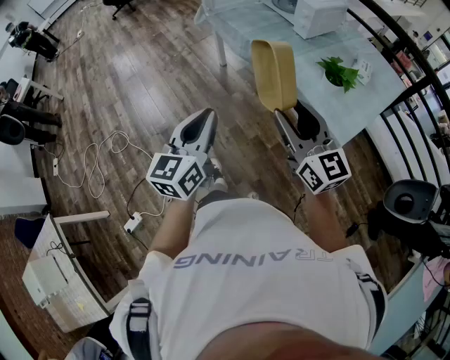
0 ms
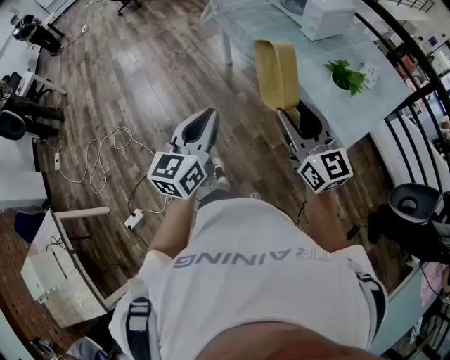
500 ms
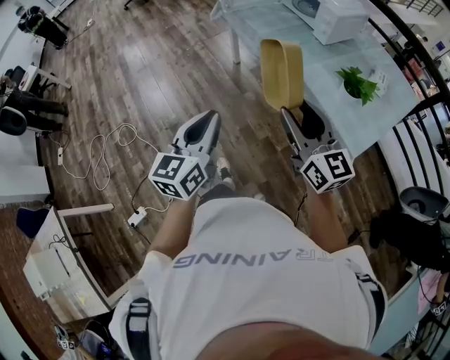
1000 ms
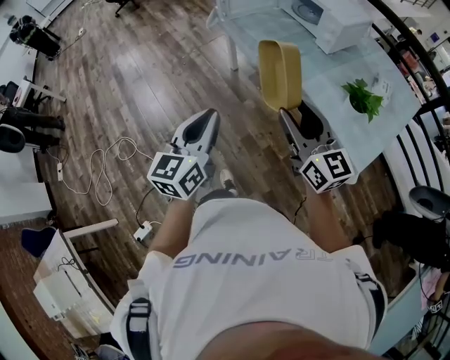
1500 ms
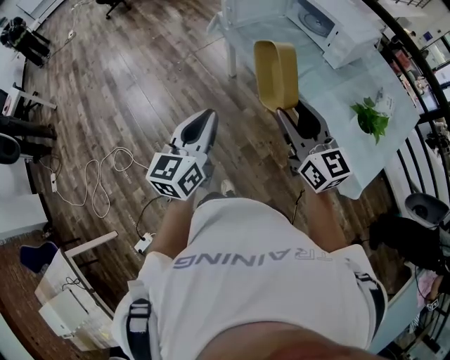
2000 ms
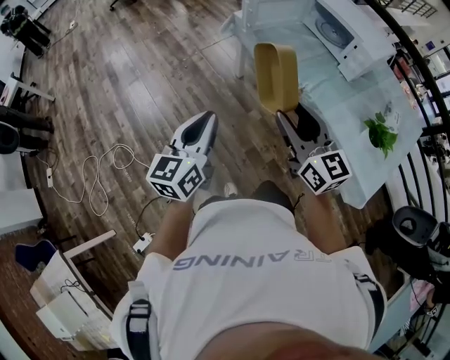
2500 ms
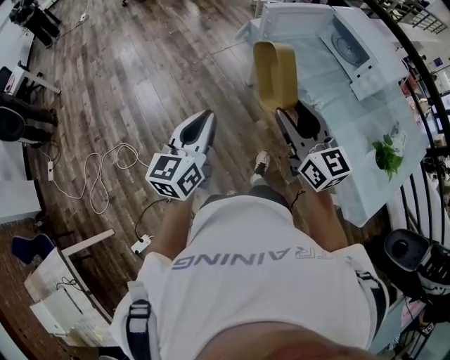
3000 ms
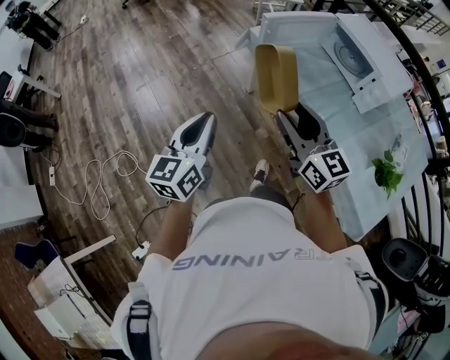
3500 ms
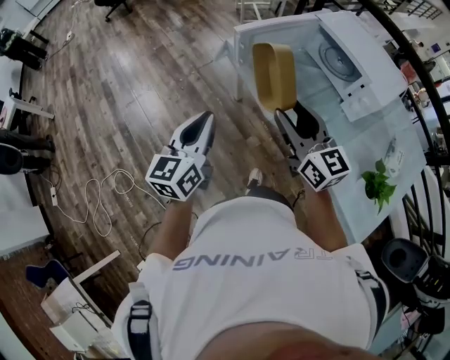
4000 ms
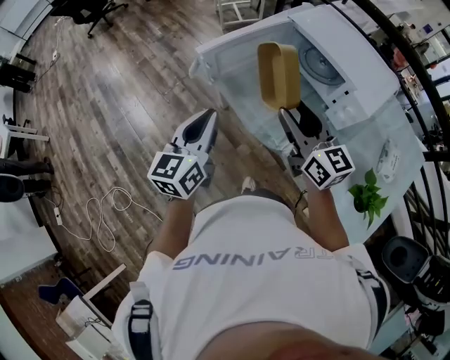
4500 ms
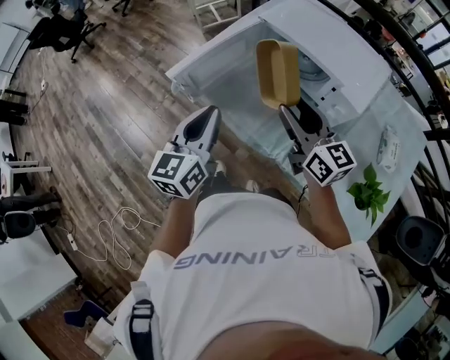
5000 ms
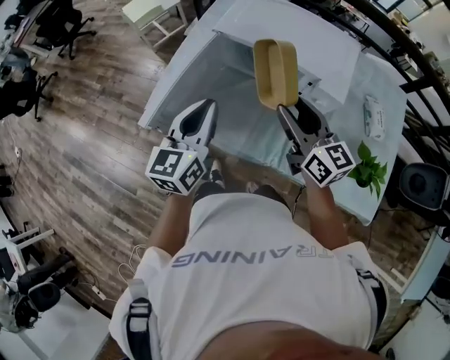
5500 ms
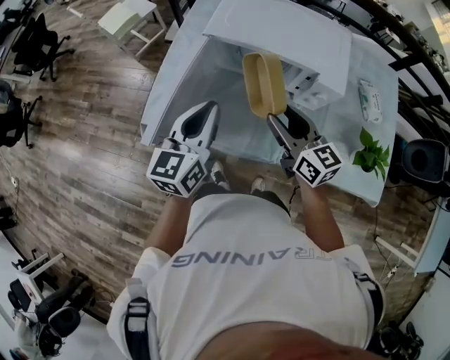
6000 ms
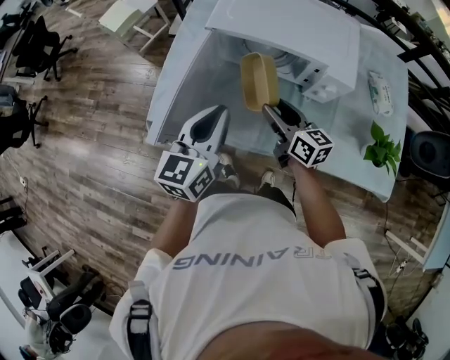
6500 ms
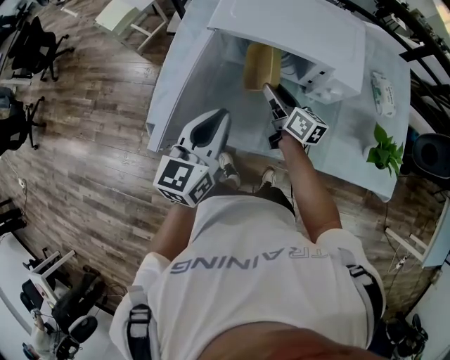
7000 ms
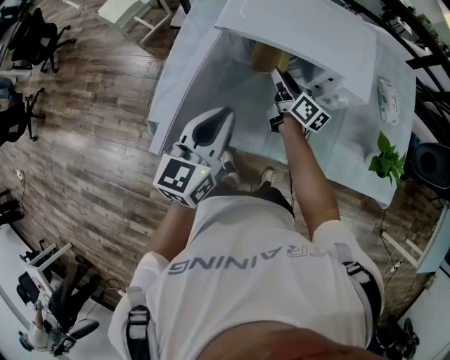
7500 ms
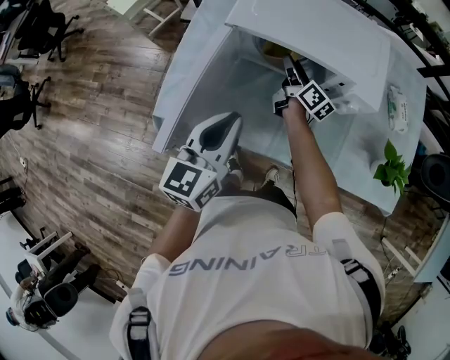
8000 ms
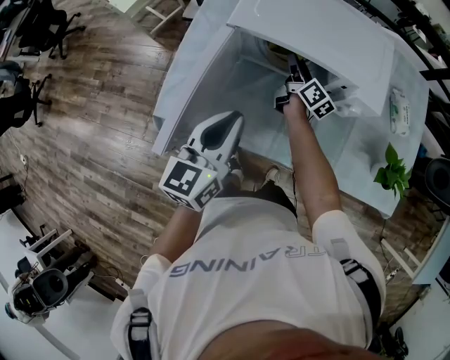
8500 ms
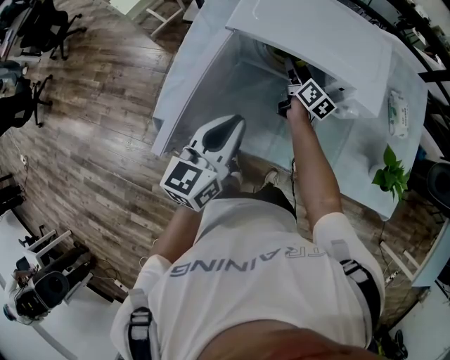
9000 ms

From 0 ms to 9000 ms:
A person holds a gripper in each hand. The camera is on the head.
From 0 ms to 2000 ms: The grippers both shift forward and to the left by some 25 cm.
From 2000 ms to 4500 ms: Both grippers travel together forward, some 40 cm.
From 4500 ms to 7000 ms: The right gripper ends up some 30 cm from where it was, and rotates about 50 degrees; the left gripper ends up some 25 cm from where it was, and turns by roughly 40 degrees.
From 7000 ms to 9000 ms: The right gripper moves forward and downward, roughly 15 cm.

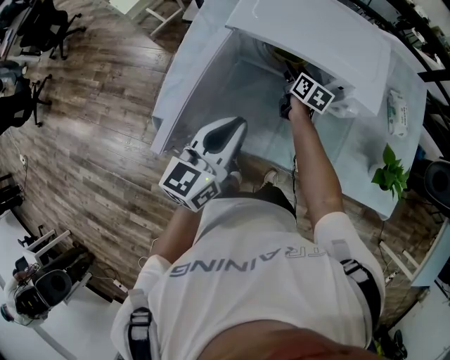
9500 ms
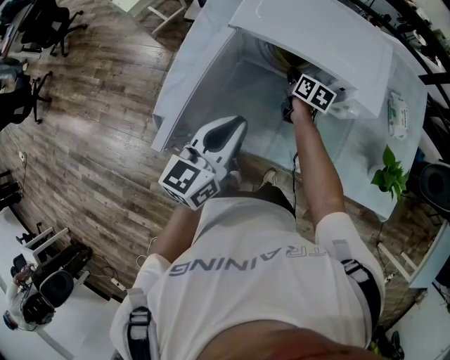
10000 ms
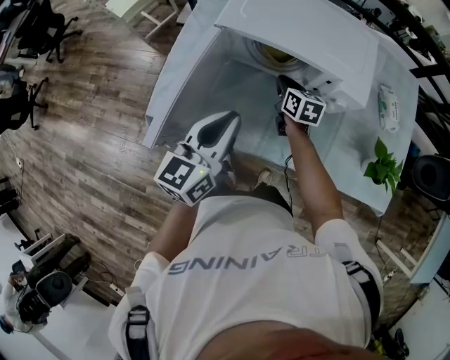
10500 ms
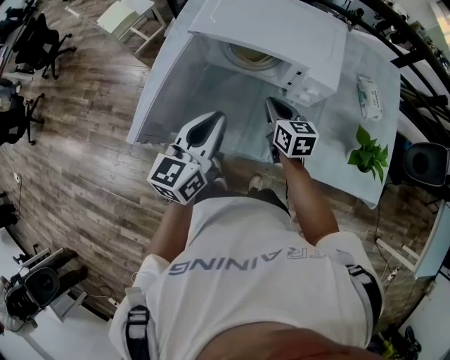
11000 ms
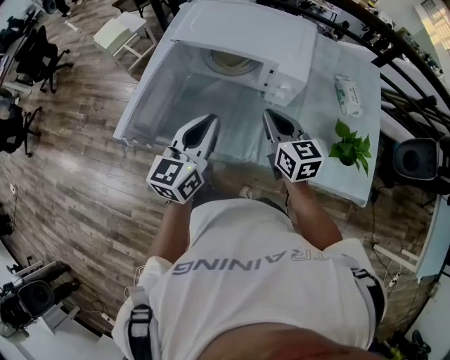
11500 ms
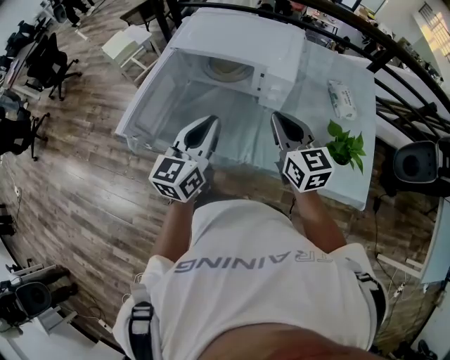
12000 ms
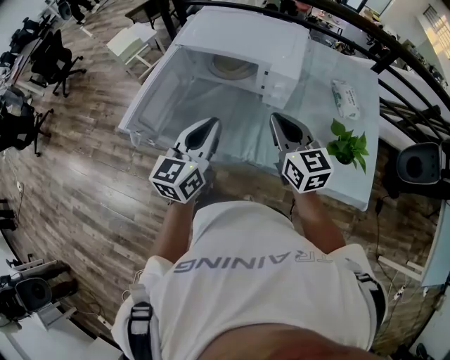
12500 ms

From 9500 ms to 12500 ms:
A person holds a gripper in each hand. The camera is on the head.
From 9500 ms to 11000 ms: The left gripper heads to the right, covering some 5 cm, while the right gripper heads backward and upward, covering approximately 20 cm, turns by some 20 degrees, and closes its fingers.
From 11000 ms to 12500 ms: The right gripper heads upward, backward and to the right, covering about 20 cm, and changes its angle by some 20 degrees; the left gripper heads backward and to the right, covering about 10 cm.

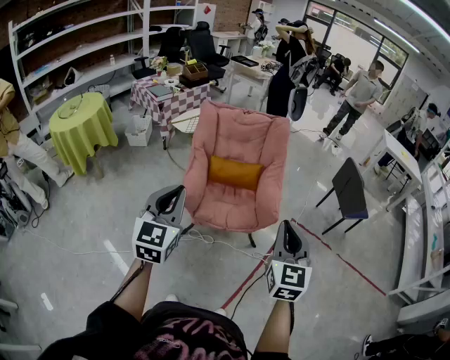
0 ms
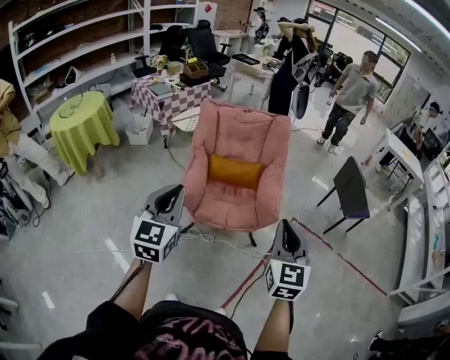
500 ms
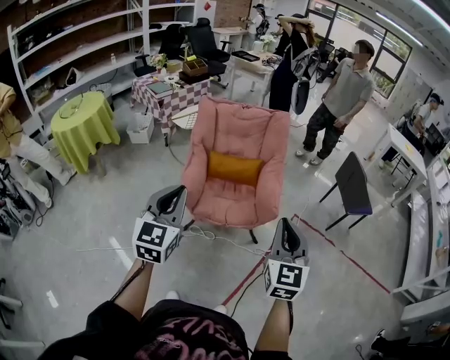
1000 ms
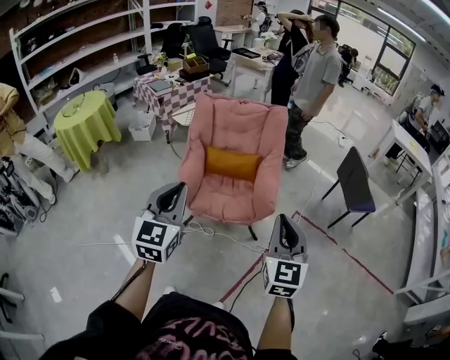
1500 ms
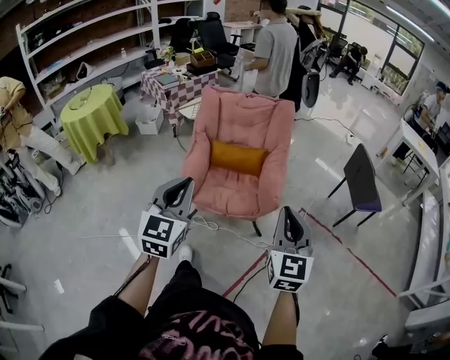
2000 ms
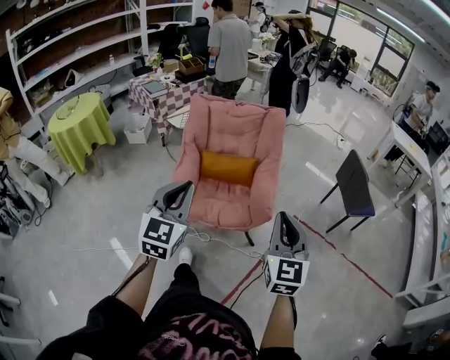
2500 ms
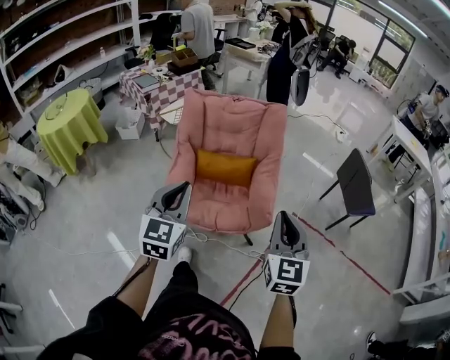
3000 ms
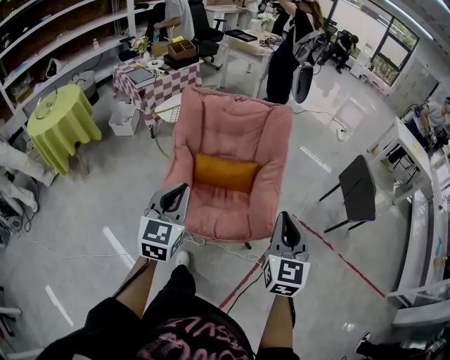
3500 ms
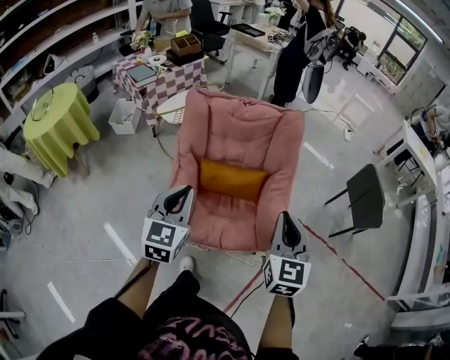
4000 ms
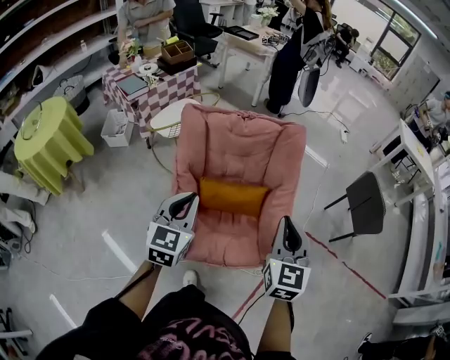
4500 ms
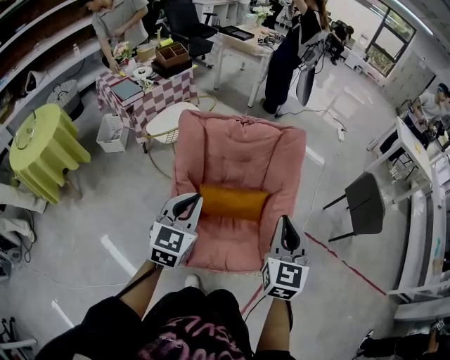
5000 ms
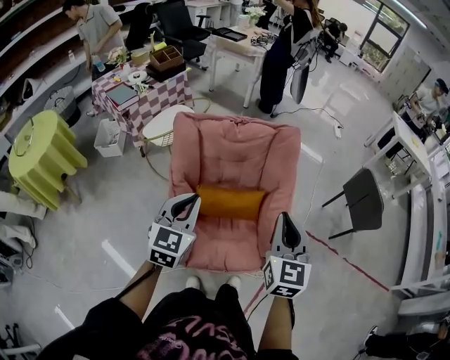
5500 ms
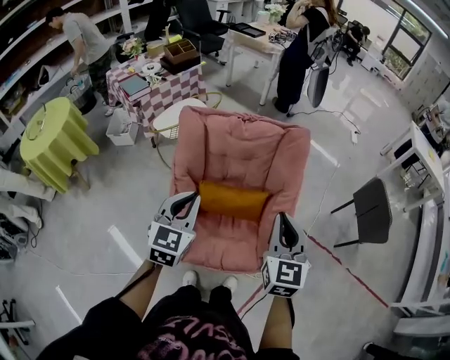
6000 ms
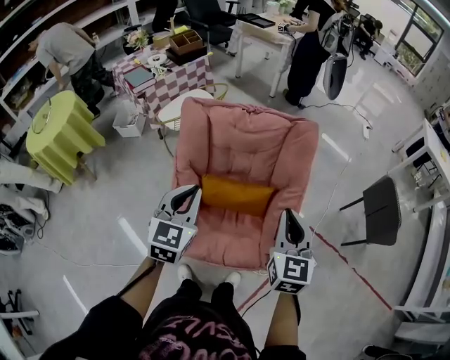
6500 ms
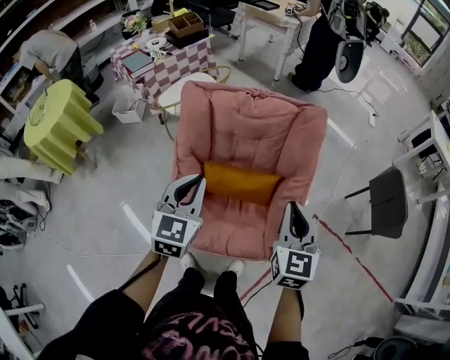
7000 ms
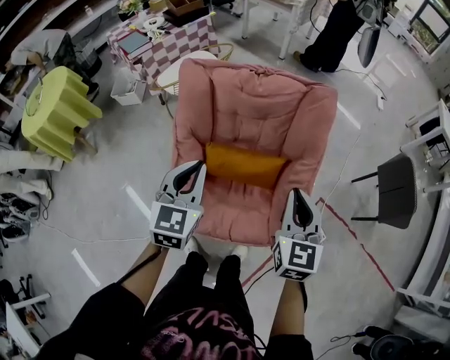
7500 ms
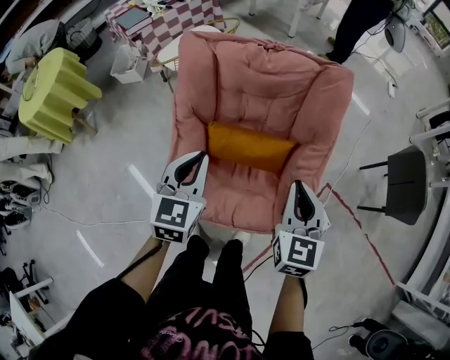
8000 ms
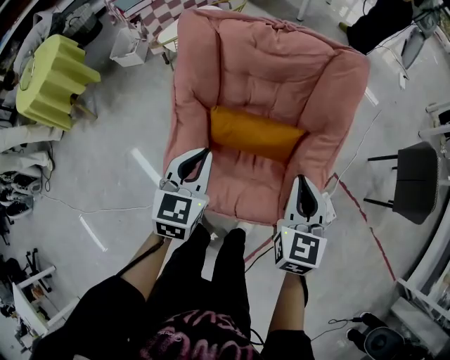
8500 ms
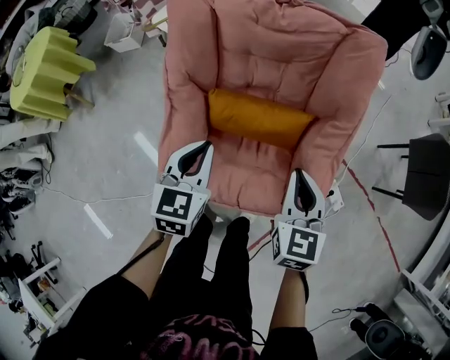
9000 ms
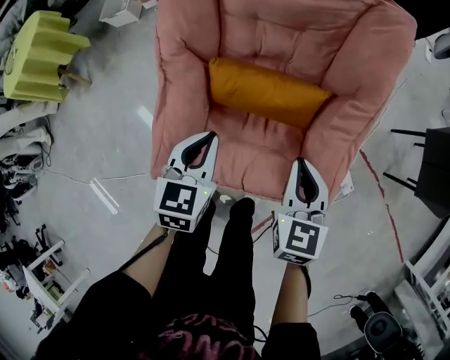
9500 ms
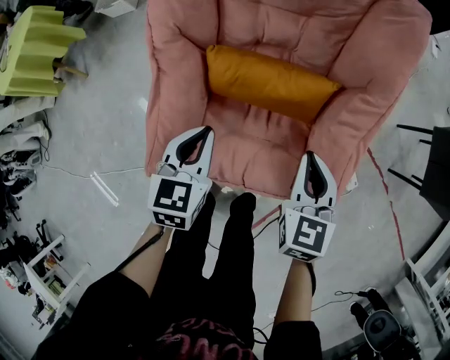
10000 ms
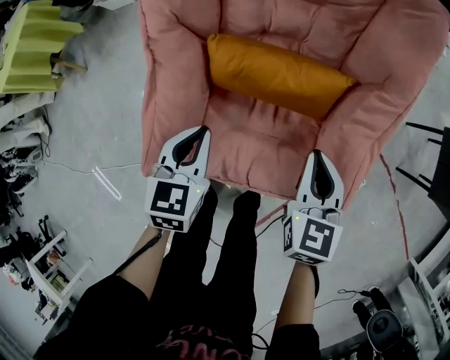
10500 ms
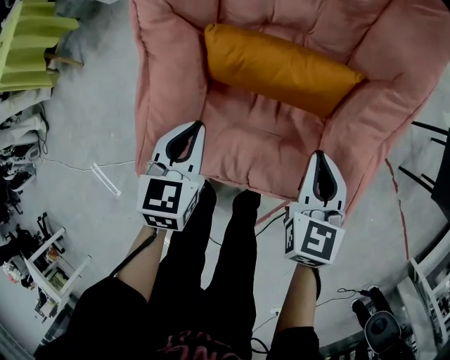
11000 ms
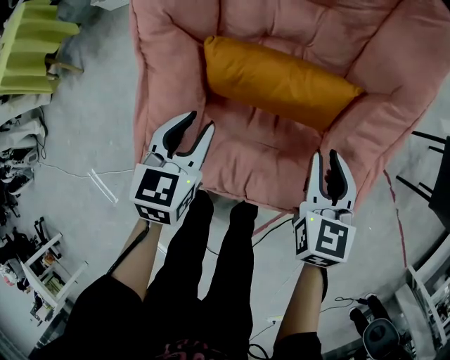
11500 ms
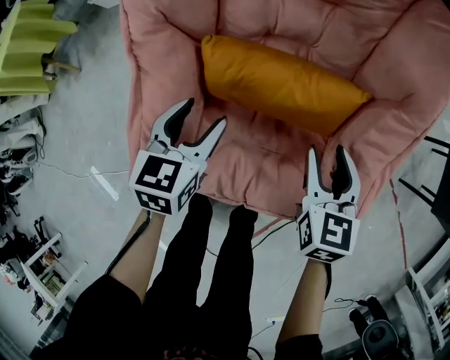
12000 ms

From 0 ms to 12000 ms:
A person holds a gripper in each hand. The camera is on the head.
From 0 ms to 2000 ms: The two grippers go about 10 cm to the right.
From 2000 ms to 4000 ms: Both grippers travel together forward, about 35 cm.
From 4000 ms to 6000 ms: Both grippers move forward, some 15 cm.
From 6000 ms to 8000 ms: Both grippers travel together downward, about 15 cm.
From 8000 ms to 10000 ms: Both grippers move downward, about 25 cm.
From 10000 ms to 12000 ms: Both grippers move downward and forward, some 10 cm. The left gripper opens up, while the right gripper opens up.

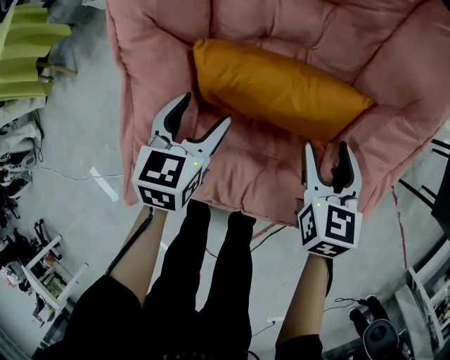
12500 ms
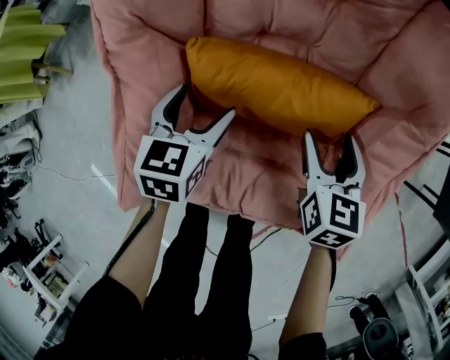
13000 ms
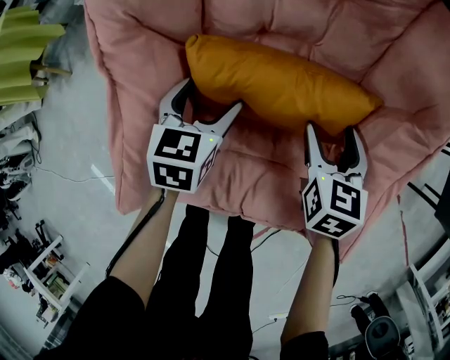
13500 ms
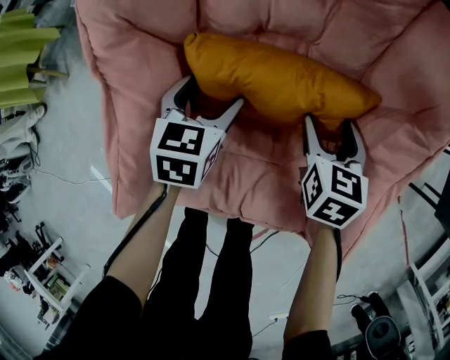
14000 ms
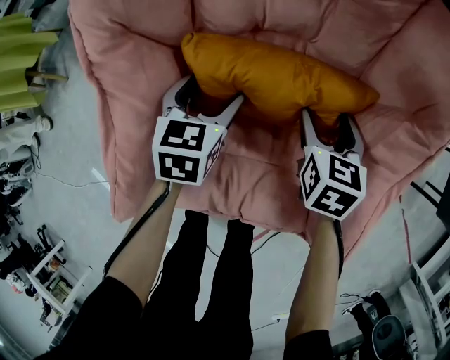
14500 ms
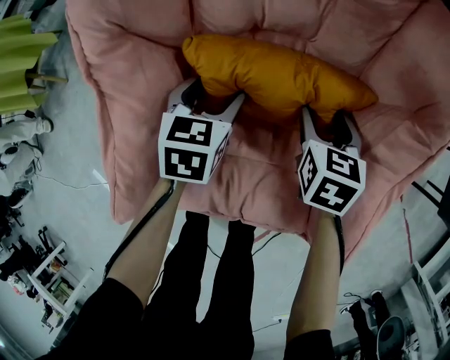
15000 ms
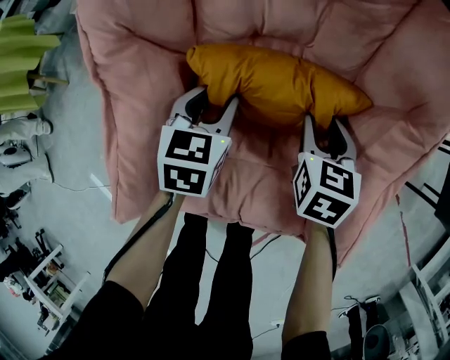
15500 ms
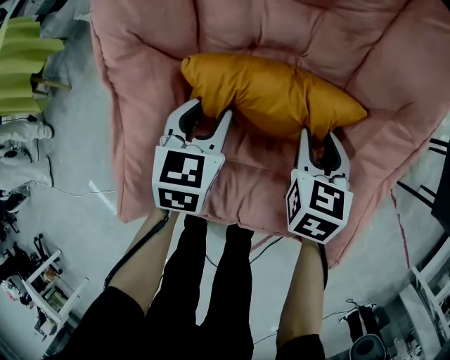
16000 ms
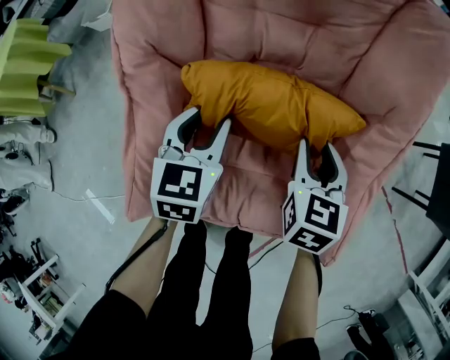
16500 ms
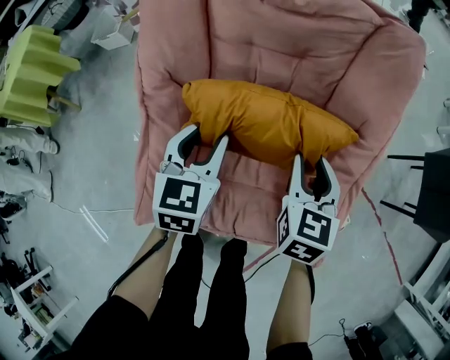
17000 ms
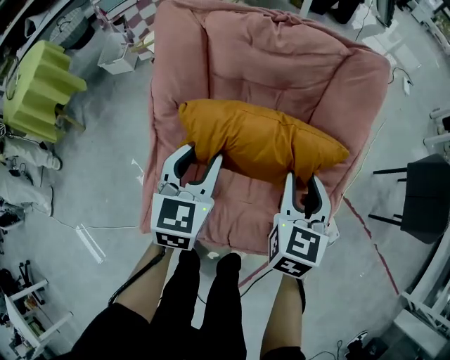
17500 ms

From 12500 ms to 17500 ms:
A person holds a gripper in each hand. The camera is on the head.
From 12500 ms to 15000 ms: Both grippers travel together downward and forward, approximately 10 cm.
From 15000 ms to 17500 ms: Both grippers travel together upward, approximately 30 cm. The left gripper turns by some 20 degrees, and closes. Meanwhile the right gripper rotates some 20 degrees, and closes its fingers.
